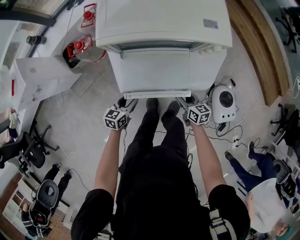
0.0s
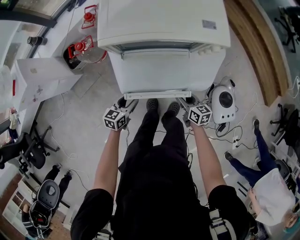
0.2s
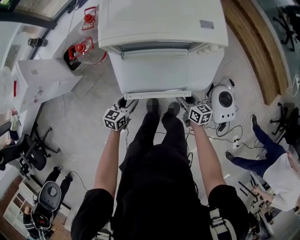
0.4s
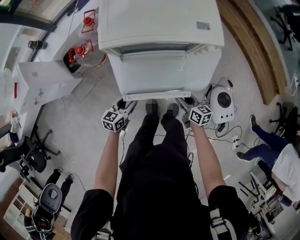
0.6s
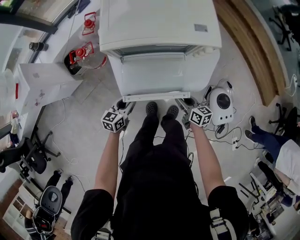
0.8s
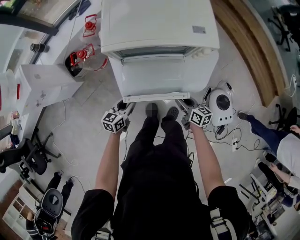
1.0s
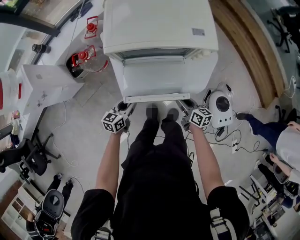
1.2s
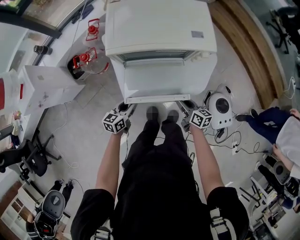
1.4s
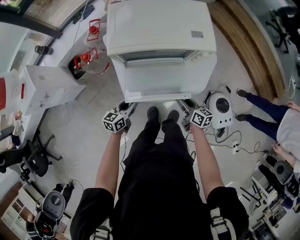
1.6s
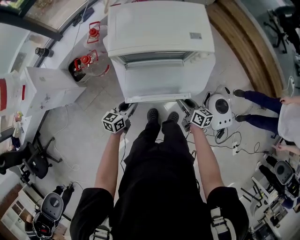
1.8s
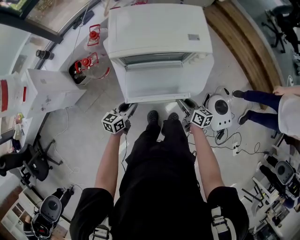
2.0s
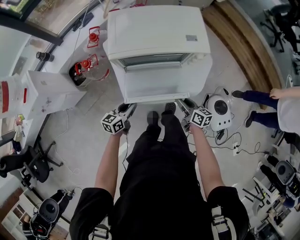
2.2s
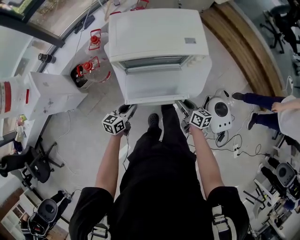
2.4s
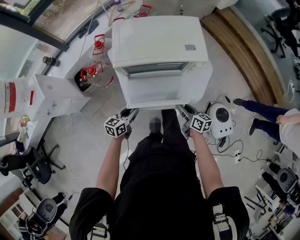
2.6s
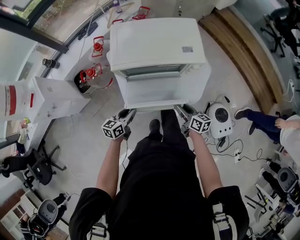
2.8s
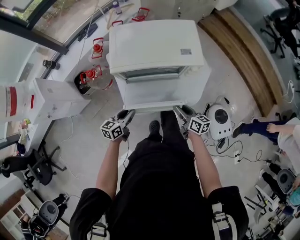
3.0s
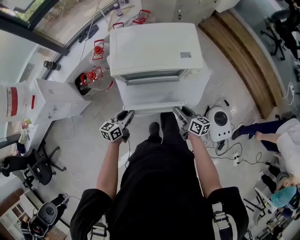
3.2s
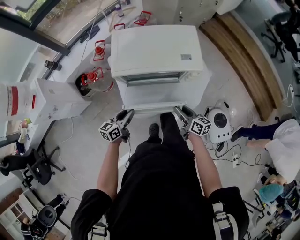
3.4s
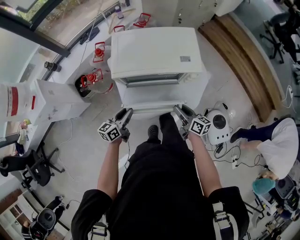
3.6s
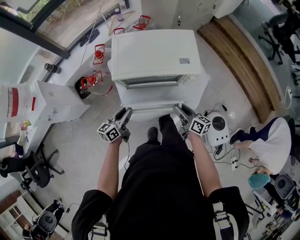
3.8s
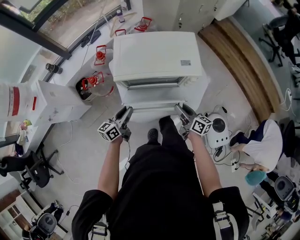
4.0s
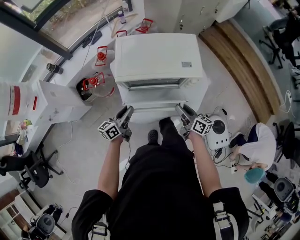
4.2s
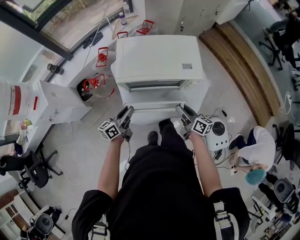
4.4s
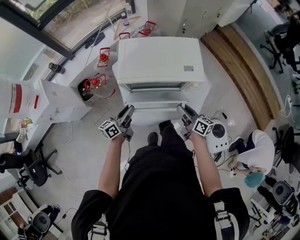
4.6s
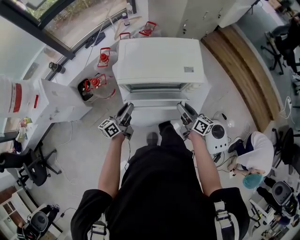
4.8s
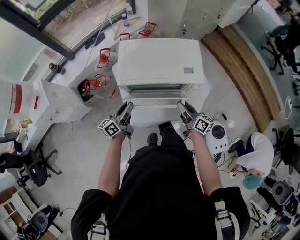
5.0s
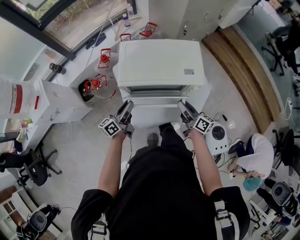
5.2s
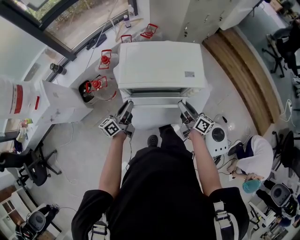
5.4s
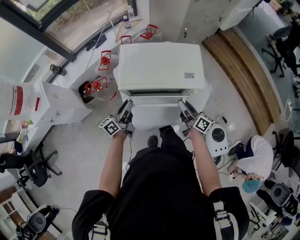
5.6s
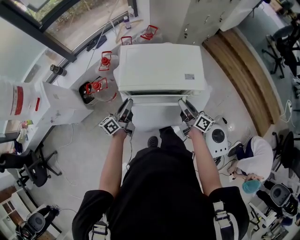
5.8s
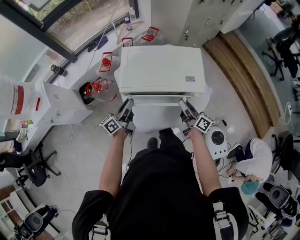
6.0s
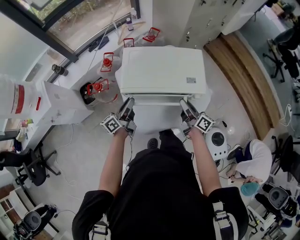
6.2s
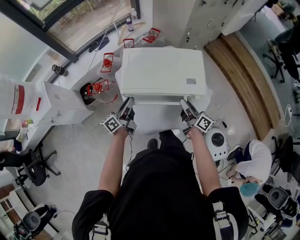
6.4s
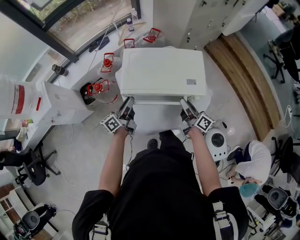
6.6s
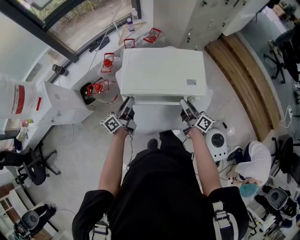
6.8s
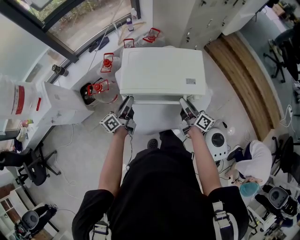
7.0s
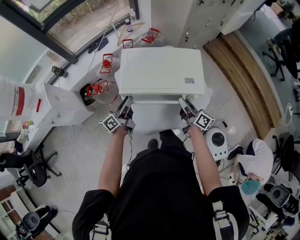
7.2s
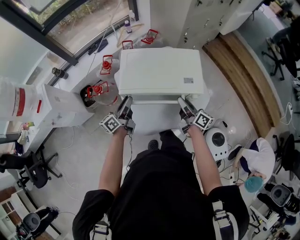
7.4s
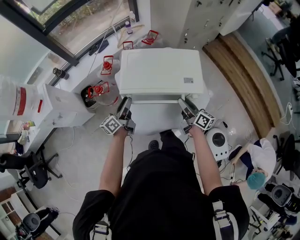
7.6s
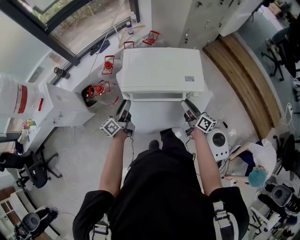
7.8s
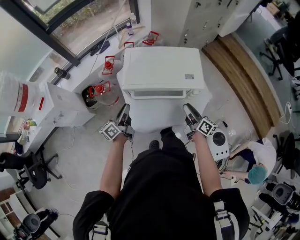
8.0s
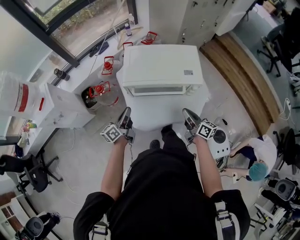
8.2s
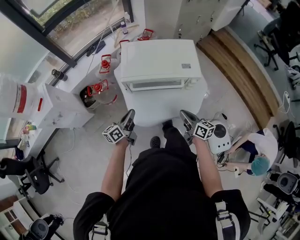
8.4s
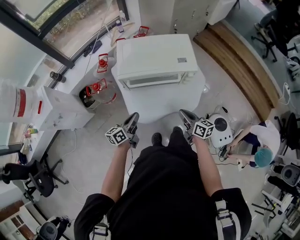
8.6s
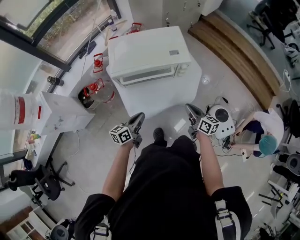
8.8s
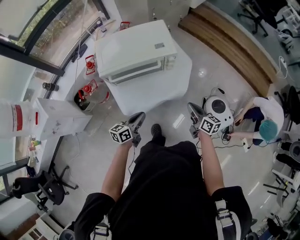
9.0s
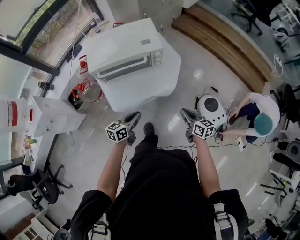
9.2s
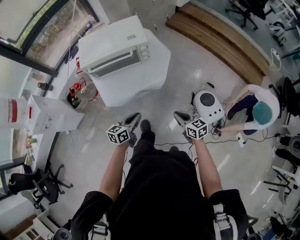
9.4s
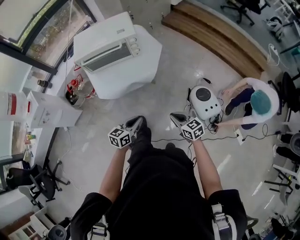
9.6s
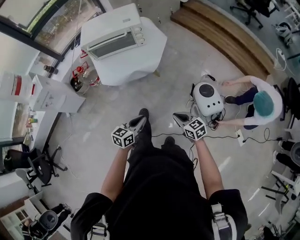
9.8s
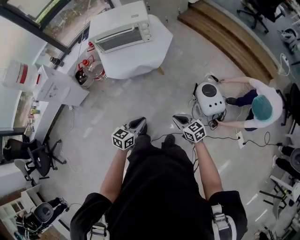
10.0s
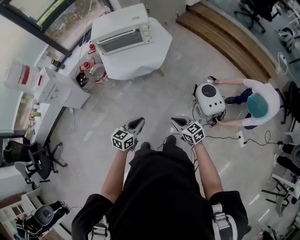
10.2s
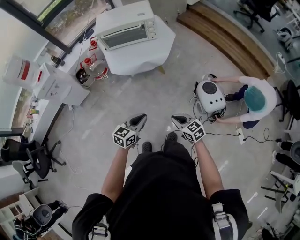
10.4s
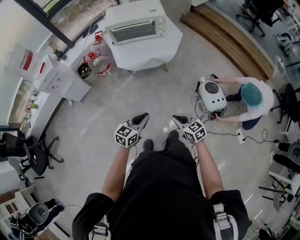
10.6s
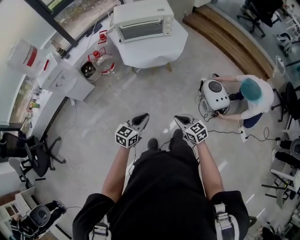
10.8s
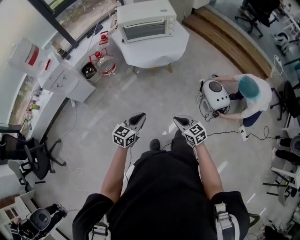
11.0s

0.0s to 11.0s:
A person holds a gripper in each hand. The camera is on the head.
0.0s to 1.6s: Both grippers travel together upward, about 10 cm.
1.6s to 3.2s: The grippers both shift upward by roughly 10 cm.
3.2s to 4.8s: Both grippers travel together upward and forward, some 10 cm. The left gripper changes its angle by roughly 30 degrees.
4.8s to 6.2s: Both grippers move forward, approximately 5 cm.
6.2s to 7.8s: The grippers make only small movements.
7.8s to 9.4s: The pair of grippers is taken backward and to the right, some 50 cm. The left gripper changes its angle by about 50 degrees, and closes its fingers. The right gripper swivels approximately 30 degrees, and closes up.
9.4s to 11.0s: Both grippers are carried backward and to the left, about 40 cm. The left gripper rotates roughly 20 degrees.

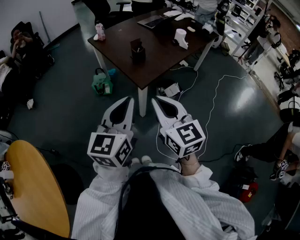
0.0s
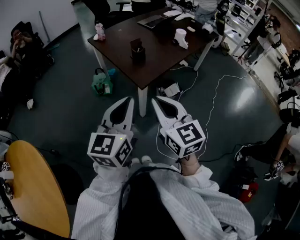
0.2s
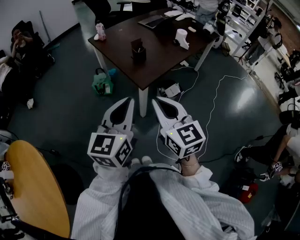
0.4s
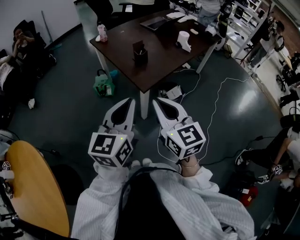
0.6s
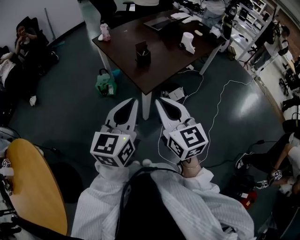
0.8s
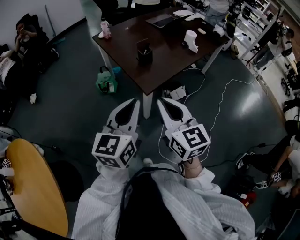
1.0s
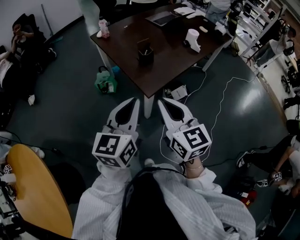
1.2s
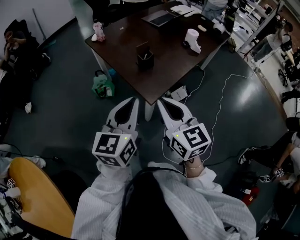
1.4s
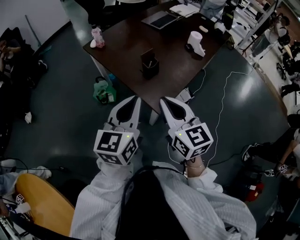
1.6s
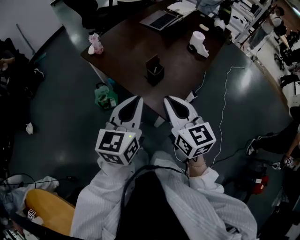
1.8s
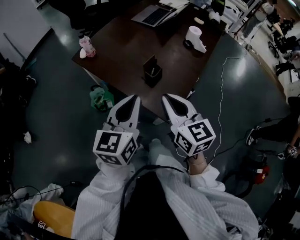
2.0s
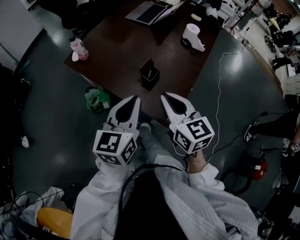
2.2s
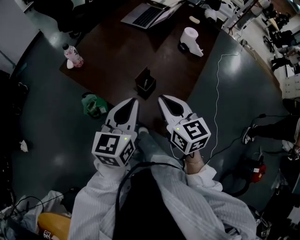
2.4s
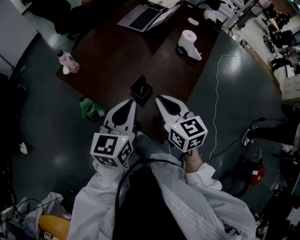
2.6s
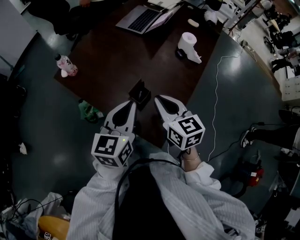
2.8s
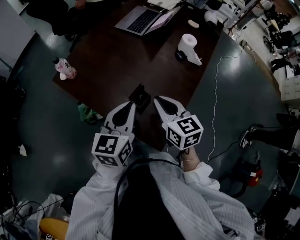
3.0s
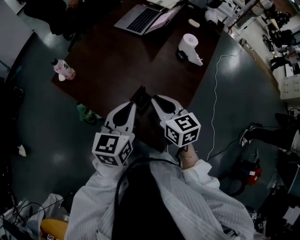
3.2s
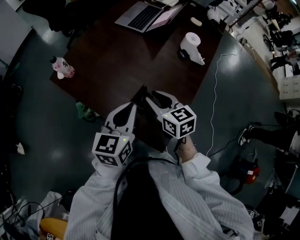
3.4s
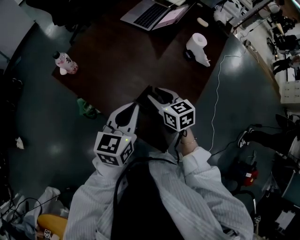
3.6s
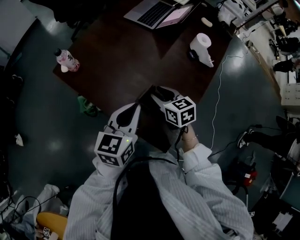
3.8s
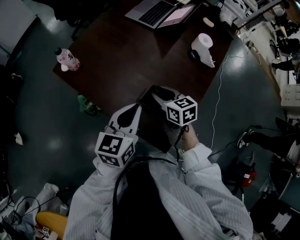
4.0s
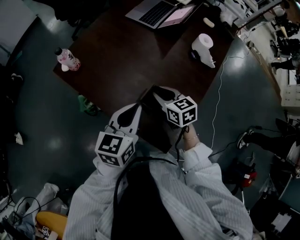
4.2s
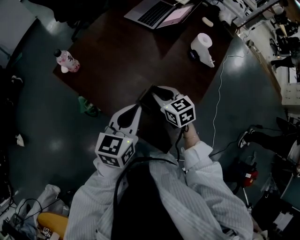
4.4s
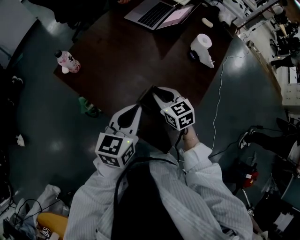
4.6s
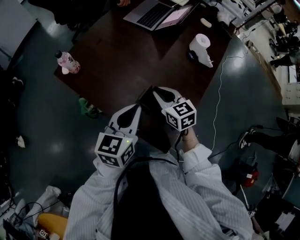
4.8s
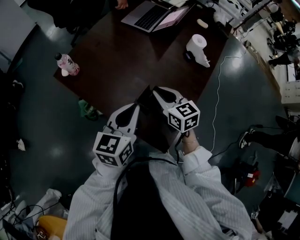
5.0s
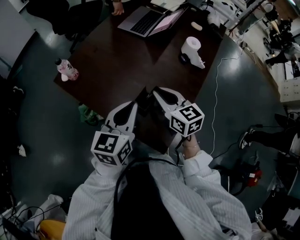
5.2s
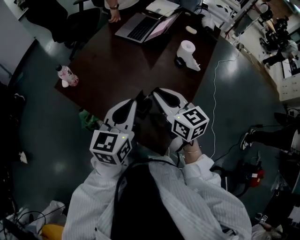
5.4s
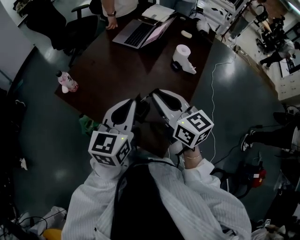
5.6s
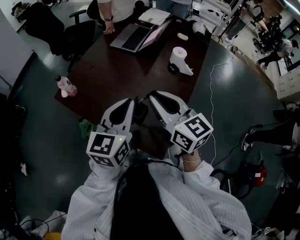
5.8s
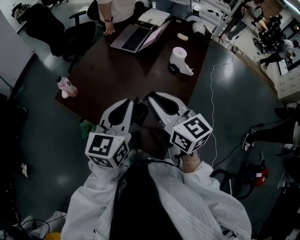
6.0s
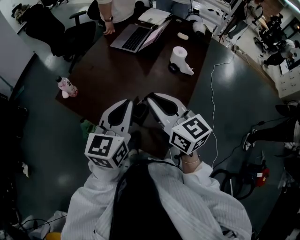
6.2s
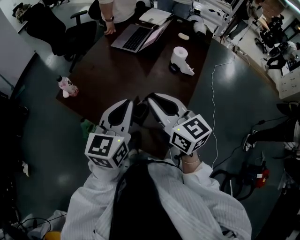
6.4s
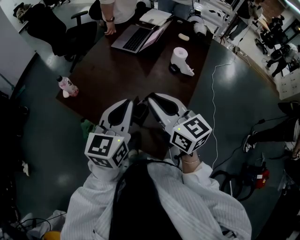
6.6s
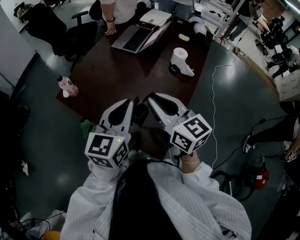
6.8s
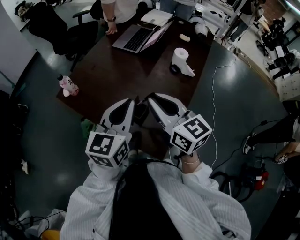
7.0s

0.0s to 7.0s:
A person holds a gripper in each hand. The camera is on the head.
0.0s to 1.4s: Both grippers move forward, approximately 15 cm.
1.4s to 2.8s: Both grippers move forward, some 35 cm. The right gripper turns by some 20 degrees.
2.8s to 4.2s: The left gripper moves downward, approximately 5 cm, while the right gripper travels downward and forward by roughly 15 cm, and opens up.
4.2s to 5.6s: The right gripper travels upward by approximately 20 cm, and rotates approximately 30 degrees, while the left gripper moves upward, approximately 10 cm.
5.6s to 7.0s: The grippers move only a little.

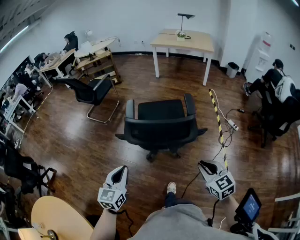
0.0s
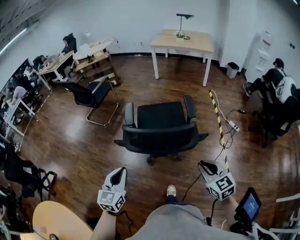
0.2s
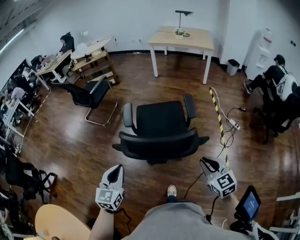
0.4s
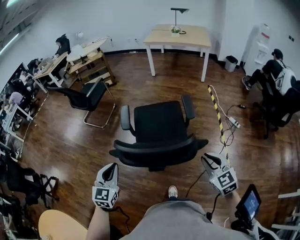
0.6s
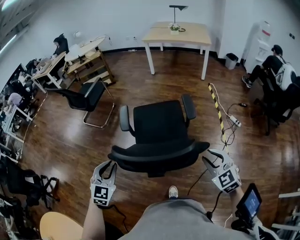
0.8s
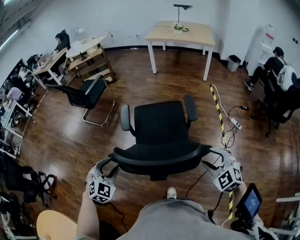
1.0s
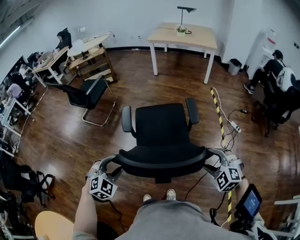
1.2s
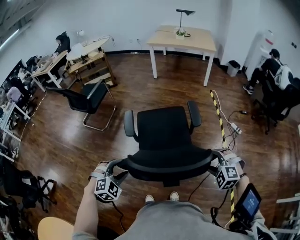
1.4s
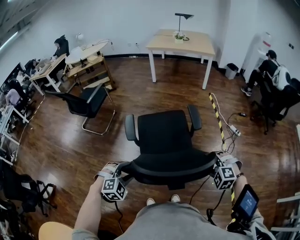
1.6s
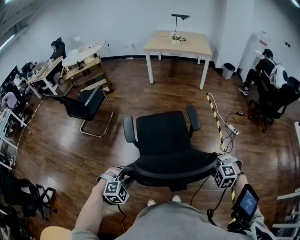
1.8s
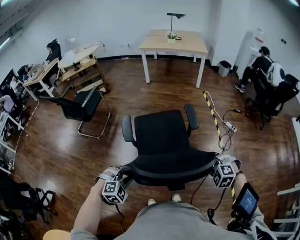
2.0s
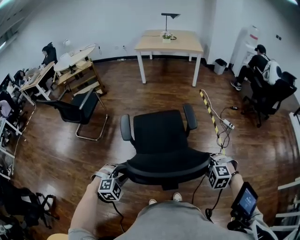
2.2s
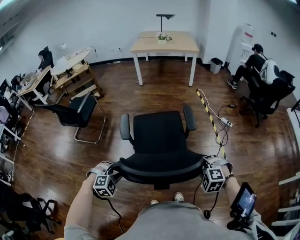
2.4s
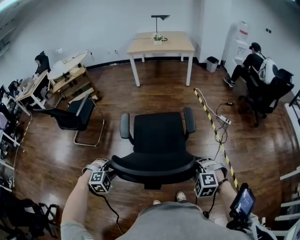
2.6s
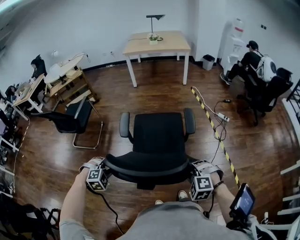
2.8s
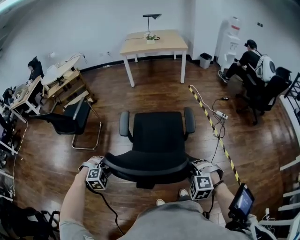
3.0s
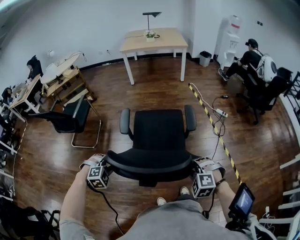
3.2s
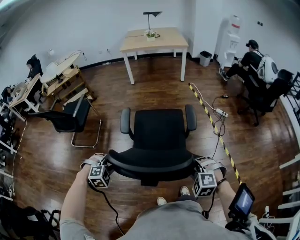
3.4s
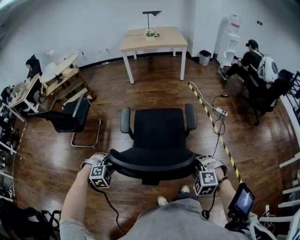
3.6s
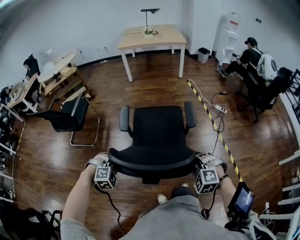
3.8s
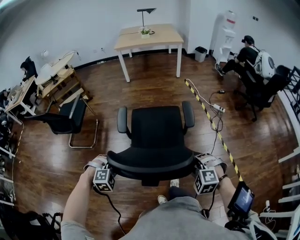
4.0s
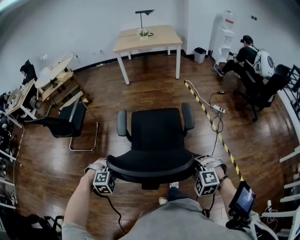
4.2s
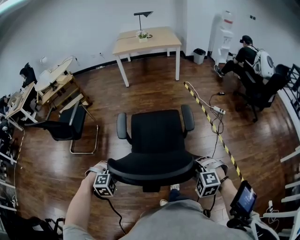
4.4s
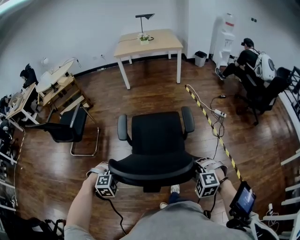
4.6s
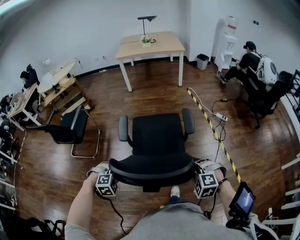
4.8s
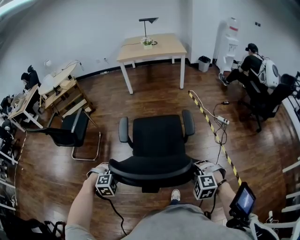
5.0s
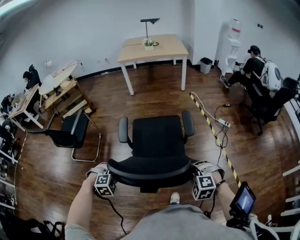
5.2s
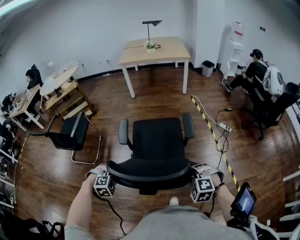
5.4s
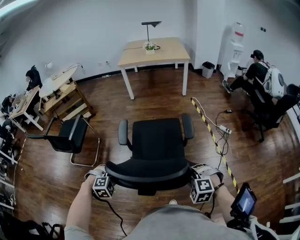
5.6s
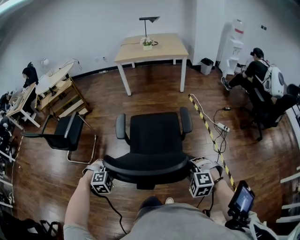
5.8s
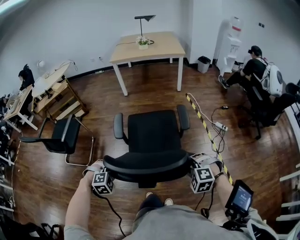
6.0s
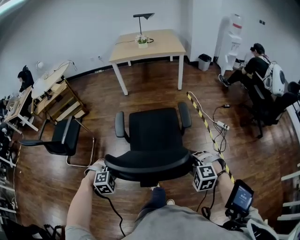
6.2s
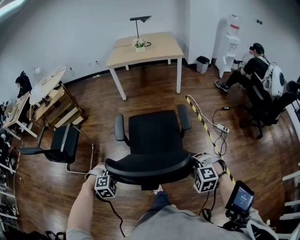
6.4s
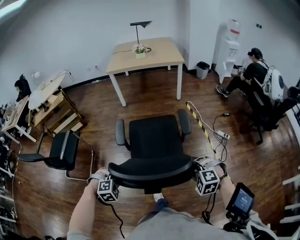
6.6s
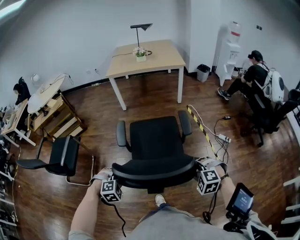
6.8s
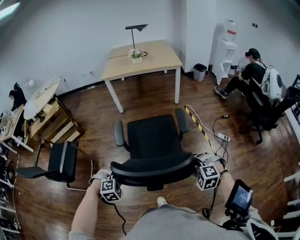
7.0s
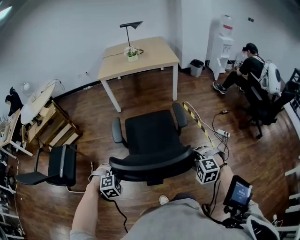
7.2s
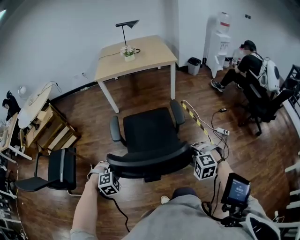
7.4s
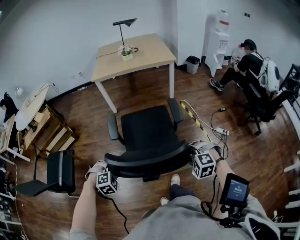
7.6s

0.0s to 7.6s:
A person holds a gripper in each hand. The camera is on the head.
0.0s to 1.6s: The two grippers go about 20 cm forward and downward. The right gripper rotates around the line of its fingers by roughly 50 degrees, counterclockwise from behind, and opens up. Meanwhile the left gripper rotates around the line of its fingers by about 60 degrees, clockwise from behind, and opens its fingers.
1.6s to 3.0s: The right gripper is displaced to the left and backward by some 15 cm, and closes, while the left gripper is displaced to the left and forward by approximately 15 cm, and closes its fingers.
3.0s to 4.6s: The grippers move only a little.
4.6s to 6.0s: Both grippers travel together forward, about 20 cm.
6.0s to 7.6s: Both grippers move forward, about 30 cm.
